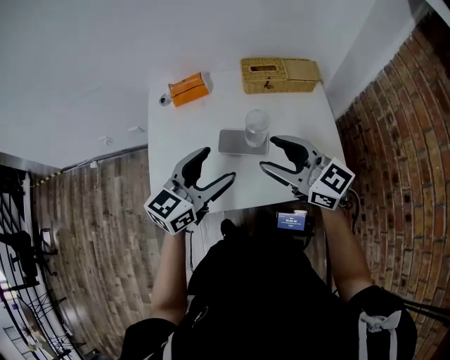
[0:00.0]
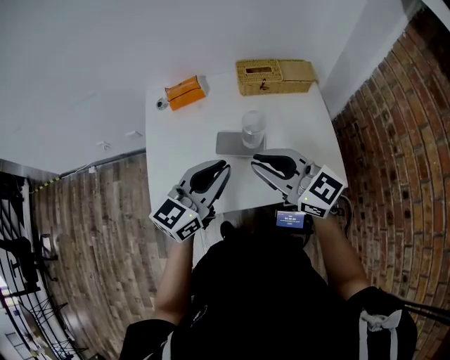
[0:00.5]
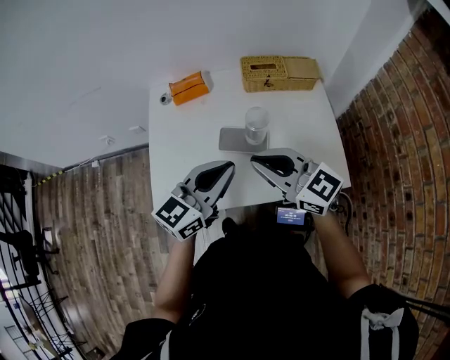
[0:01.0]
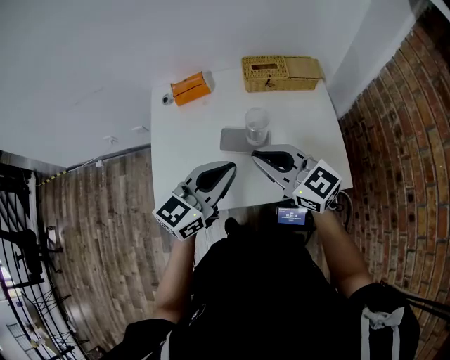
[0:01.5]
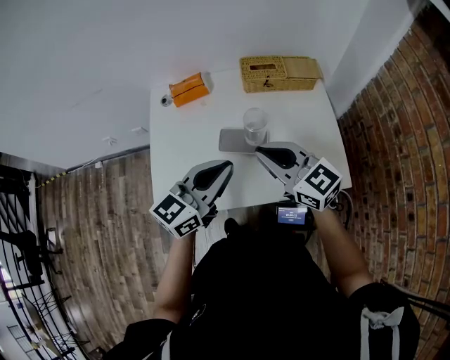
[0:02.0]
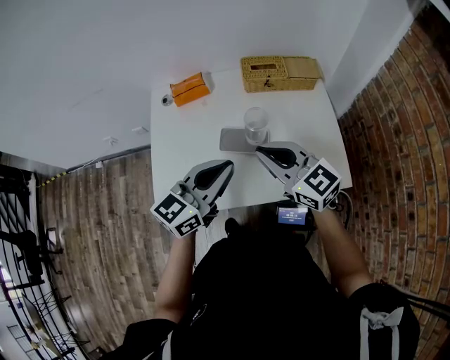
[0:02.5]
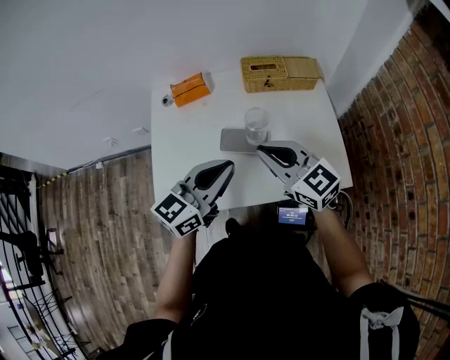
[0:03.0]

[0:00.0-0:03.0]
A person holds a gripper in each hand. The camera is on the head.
0:00.0 to 0:01.5: The left gripper closes; the right gripper closes up.
0:01.5 to 0:03.0: The grippers make only small movements.

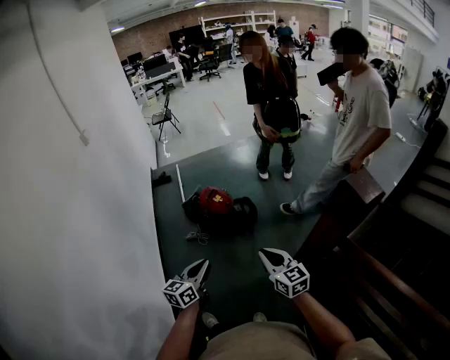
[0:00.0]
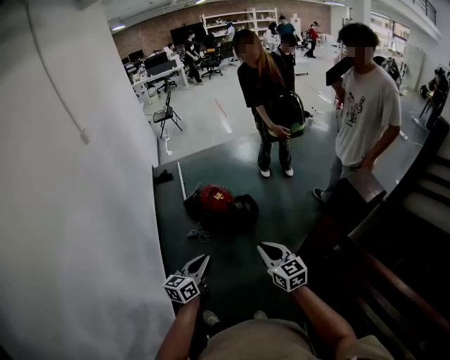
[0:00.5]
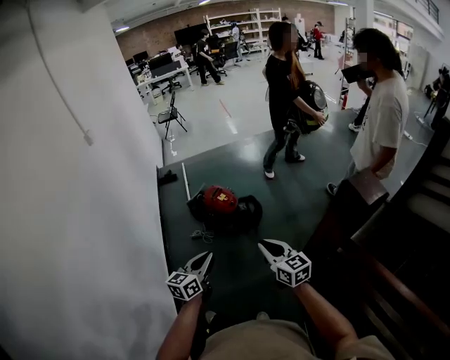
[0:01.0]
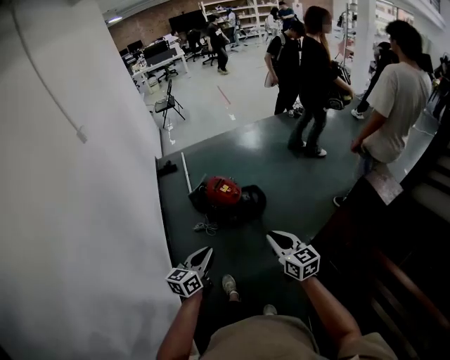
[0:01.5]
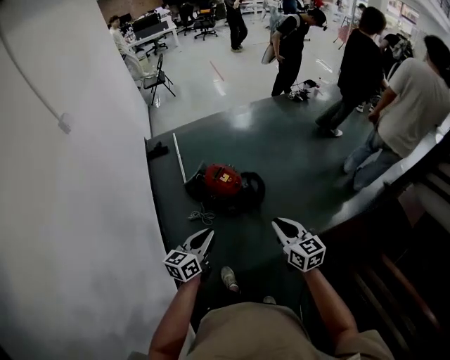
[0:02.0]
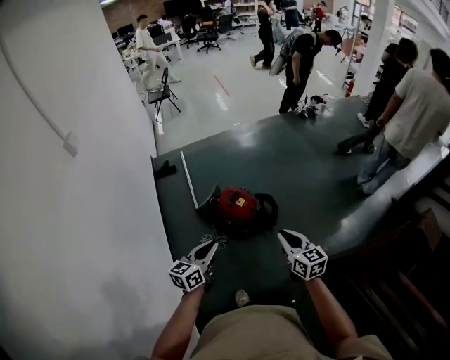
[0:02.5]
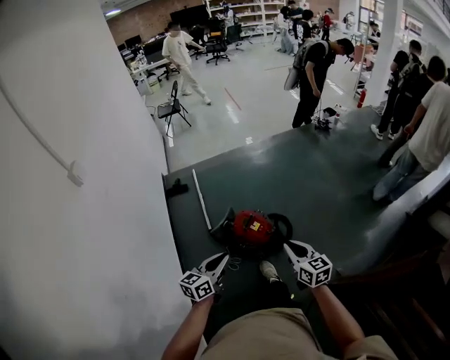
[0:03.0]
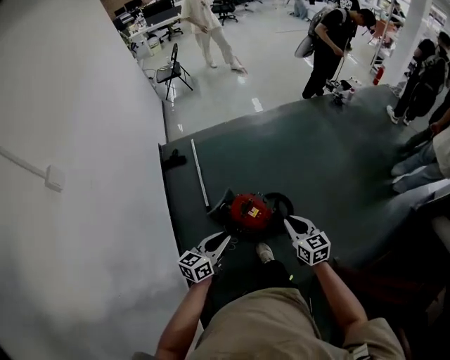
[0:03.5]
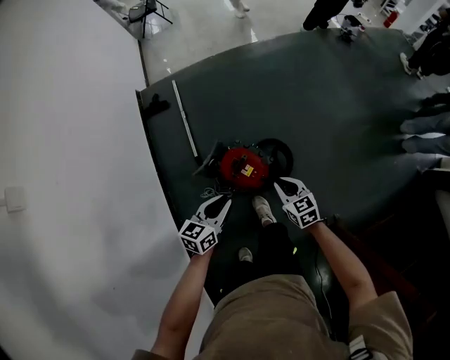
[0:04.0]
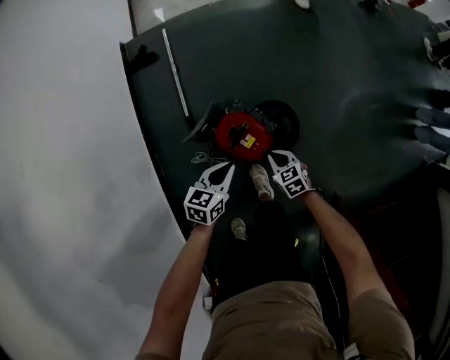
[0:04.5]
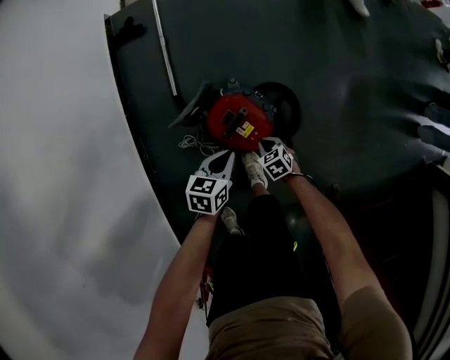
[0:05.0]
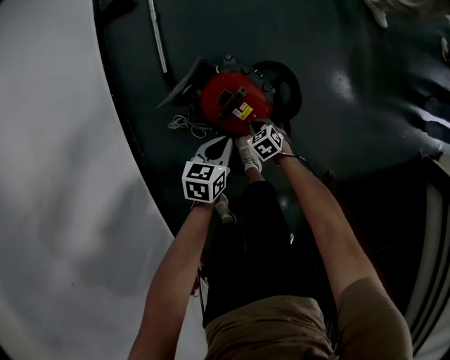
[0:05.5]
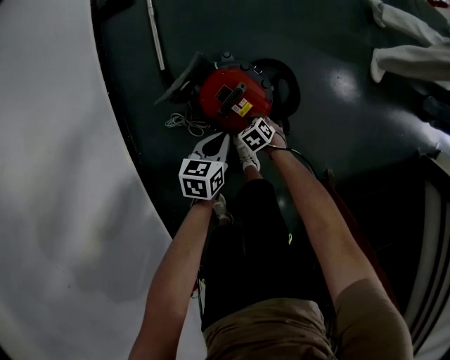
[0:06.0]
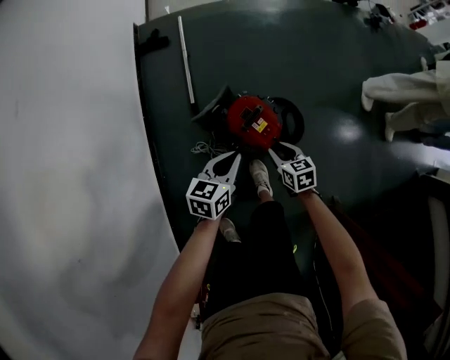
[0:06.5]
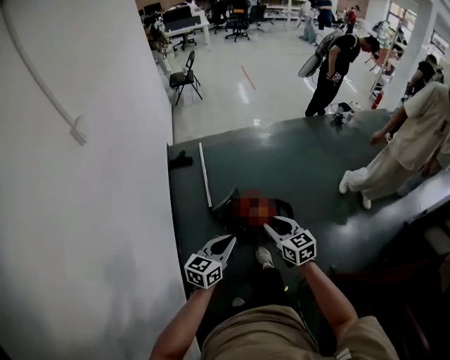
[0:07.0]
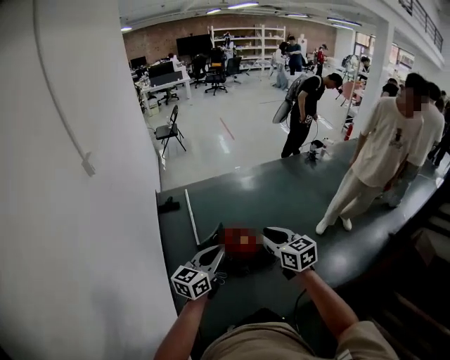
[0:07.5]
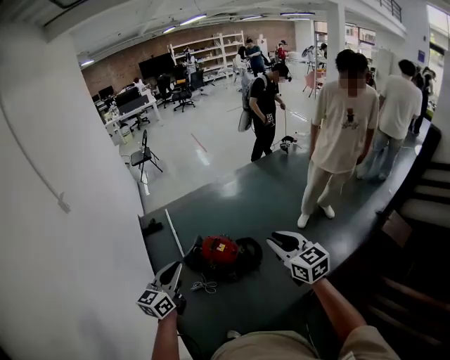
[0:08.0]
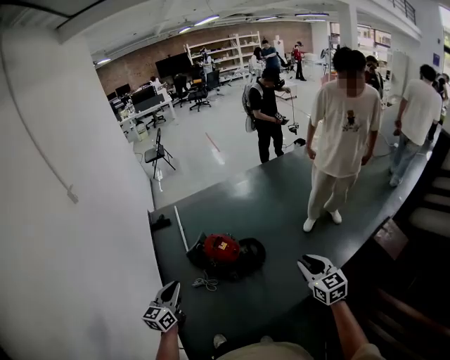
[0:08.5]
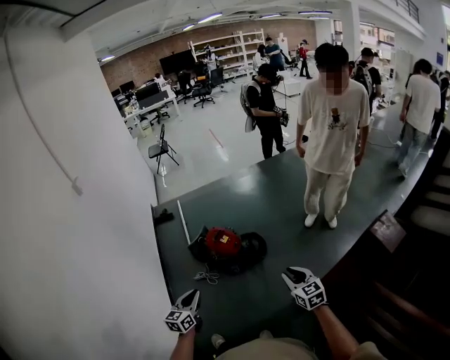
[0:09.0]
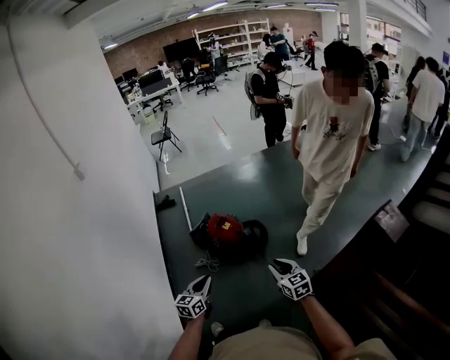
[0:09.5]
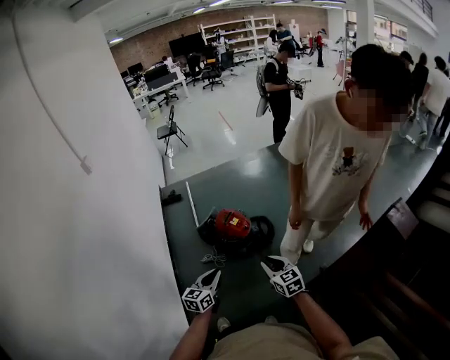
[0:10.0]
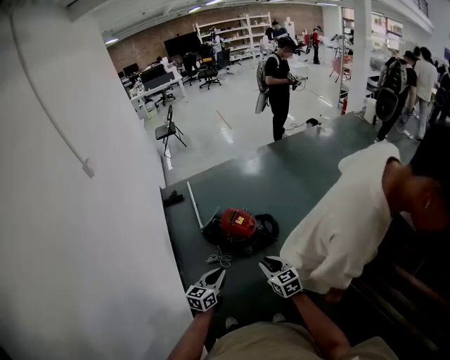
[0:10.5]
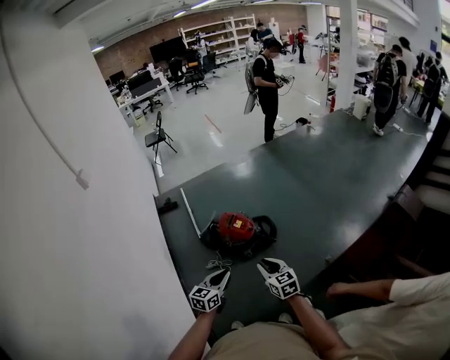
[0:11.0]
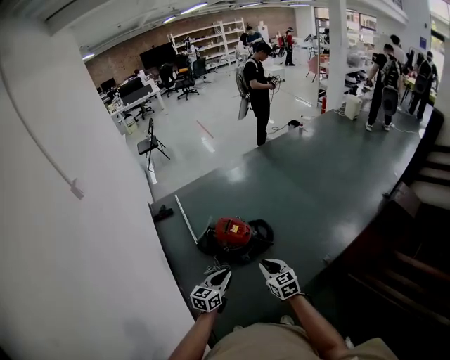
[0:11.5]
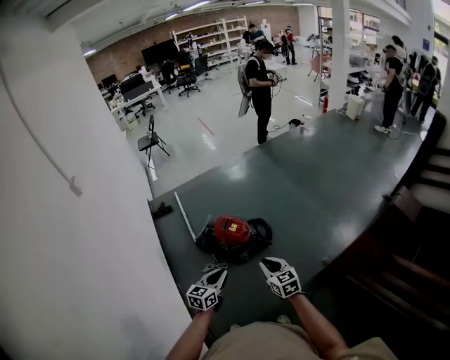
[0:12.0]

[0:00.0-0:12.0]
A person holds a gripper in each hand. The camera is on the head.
0:00.0 to 0:02.0: Both grippers travel together forward, about 20 cm.
0:02.0 to 0:04.0: Both grippers are carried forward, about 50 cm. The right gripper is displaced downward by some 30 cm, and turns by approximately 20 degrees.
0:04.0 to 0:06.0: Both grippers travel together downward, some 40 cm. The right gripper tilts its fingers approximately 40 degrees downward; the left gripper swivels approximately 20 degrees.
0:06.0 to 0:08.0: The two grippers travel together, approximately 40 cm. Both grippers move upward, about 80 cm. The right gripper tilts its fingers about 60 degrees upward; the left gripper points its fingers some 40 degrees further upward.
0:08.0 to 0:10.0: Both grippers move downward and backward, some 25 cm.
0:10.0 to 0:12.0: The right gripper goes roughly 10 cm to the left; the left gripper travels forward and to the left by roughly 10 cm.

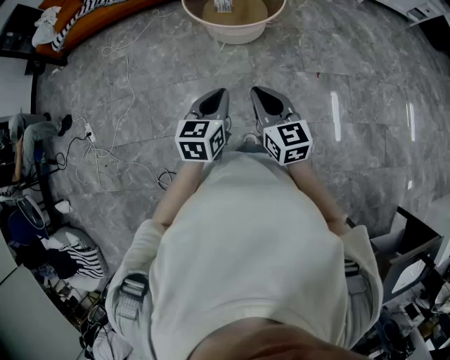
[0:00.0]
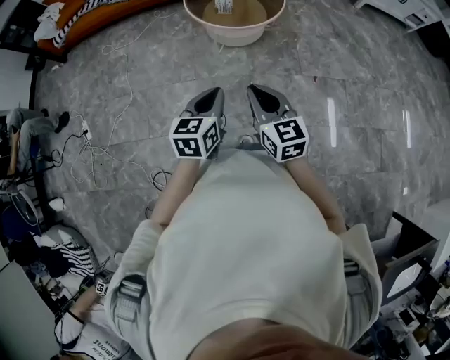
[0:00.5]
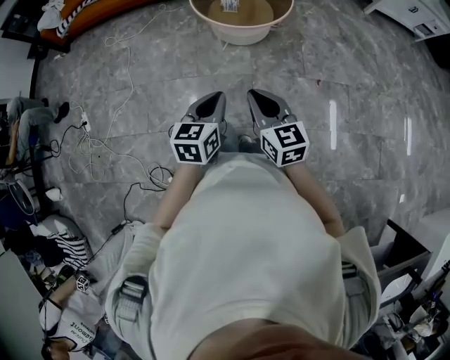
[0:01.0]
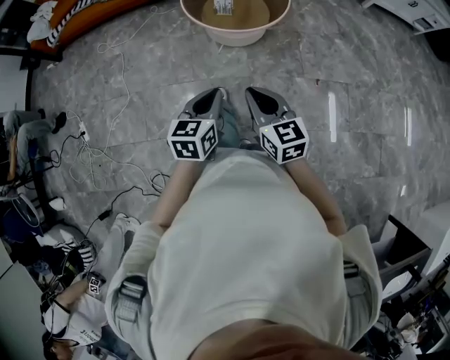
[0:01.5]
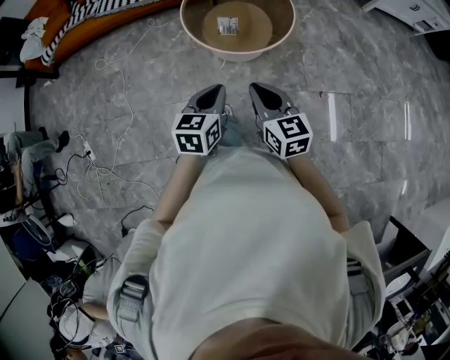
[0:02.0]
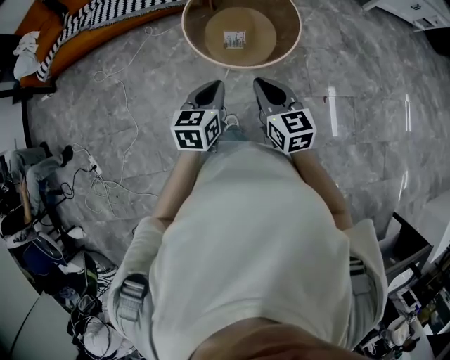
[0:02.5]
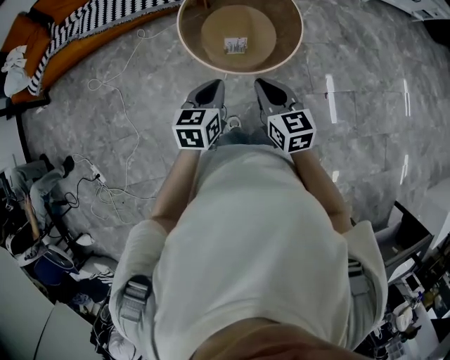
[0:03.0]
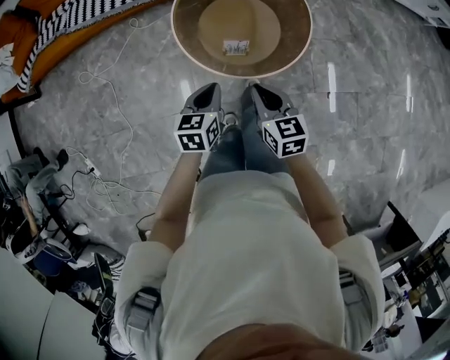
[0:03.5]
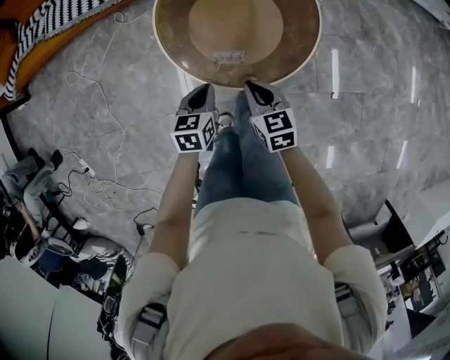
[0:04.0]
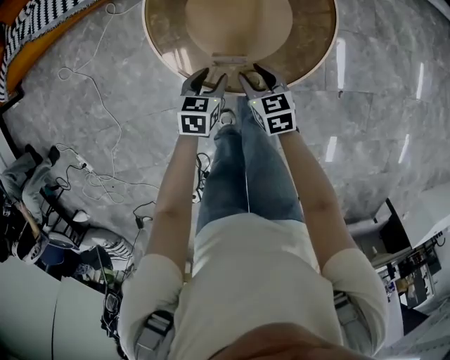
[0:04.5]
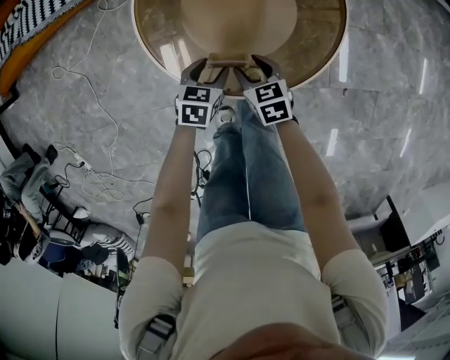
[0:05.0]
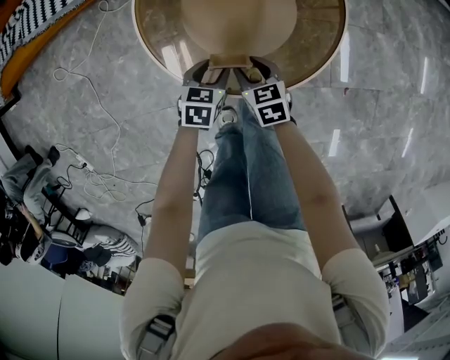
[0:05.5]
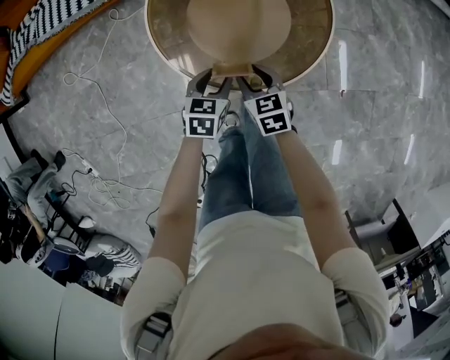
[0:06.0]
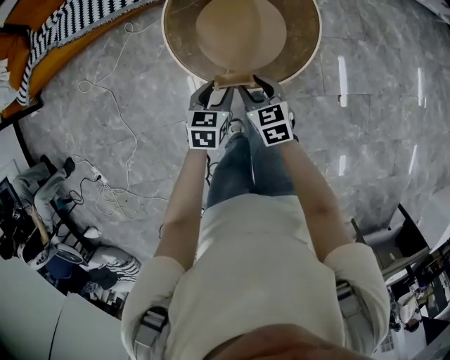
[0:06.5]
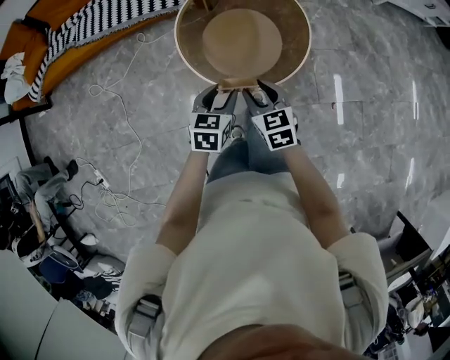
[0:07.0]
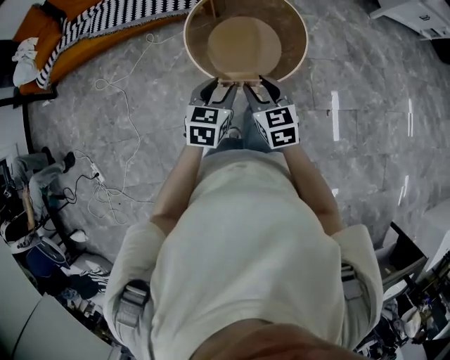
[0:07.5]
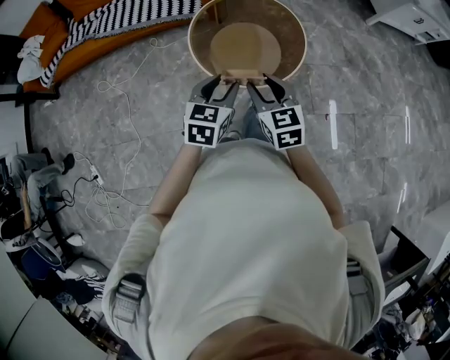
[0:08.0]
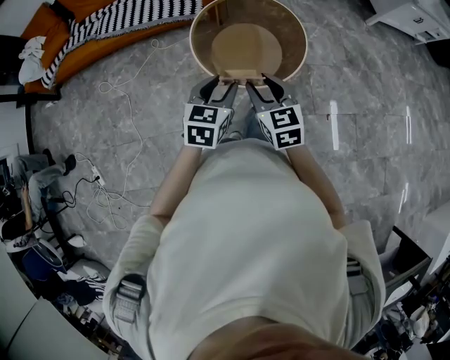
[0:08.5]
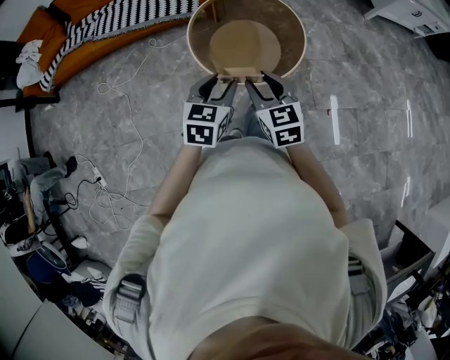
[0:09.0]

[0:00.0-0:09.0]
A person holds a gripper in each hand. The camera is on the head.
0:00.0 to 0:02.0: Both grippers travel together forward, some 20 cm.
0:02.0 to 0:04.5: Both grippers travel together downward and forward, roughly 50 cm. The right gripper rotates roughly 30 degrees, and opens; the left gripper turns by some 20 degrees, and opens up.
0:04.5 to 0:07.0: The right gripper travels upward and backward by roughly 25 cm, while the left gripper shifts approximately 20 cm upward.
0:07.0 to 0:09.0: The two grippers go some 15 cm upward and backward.

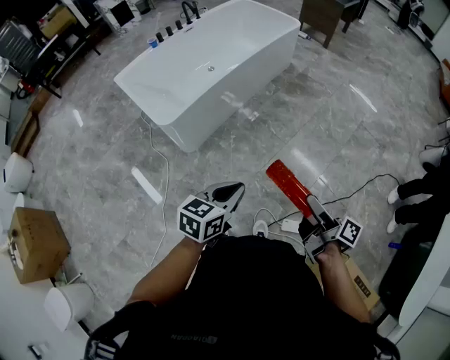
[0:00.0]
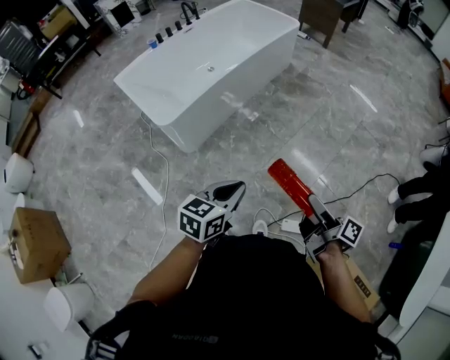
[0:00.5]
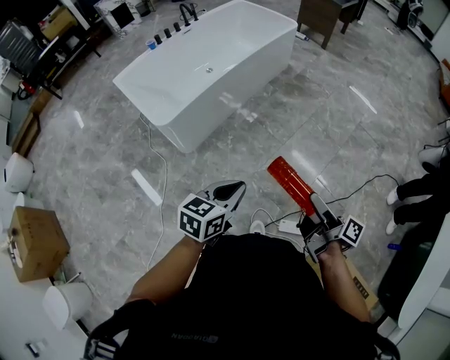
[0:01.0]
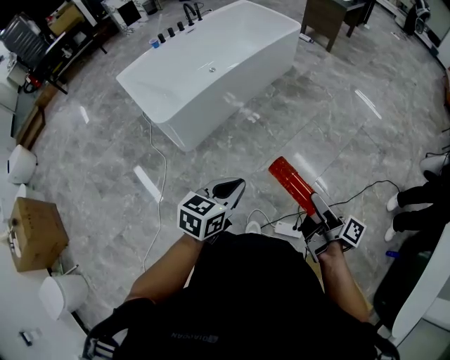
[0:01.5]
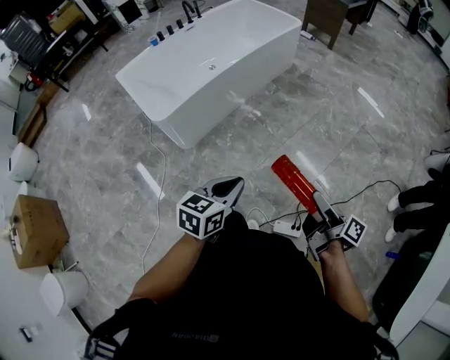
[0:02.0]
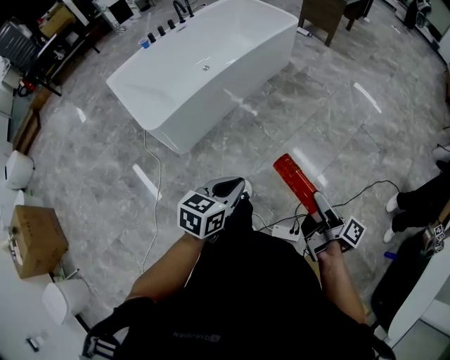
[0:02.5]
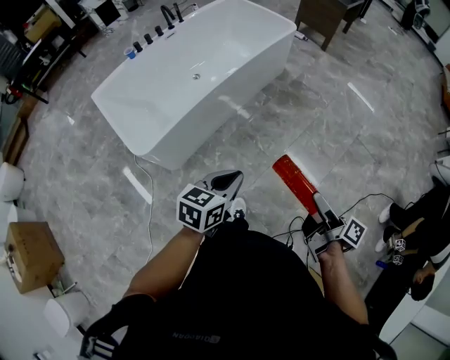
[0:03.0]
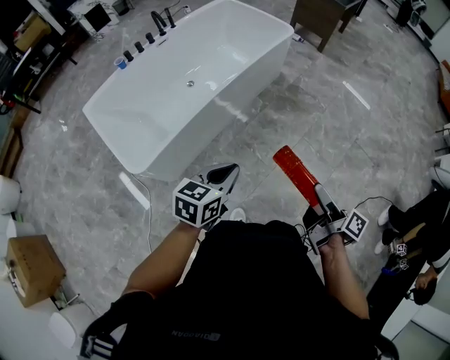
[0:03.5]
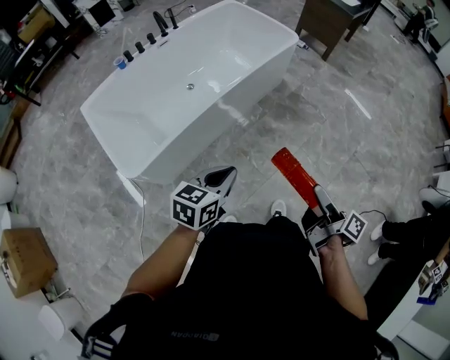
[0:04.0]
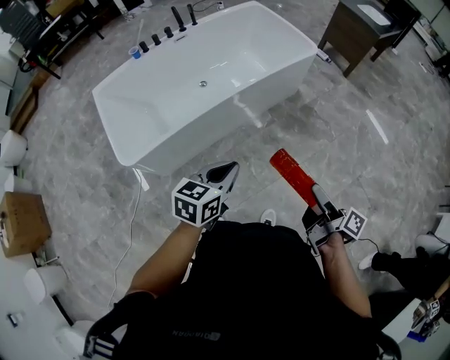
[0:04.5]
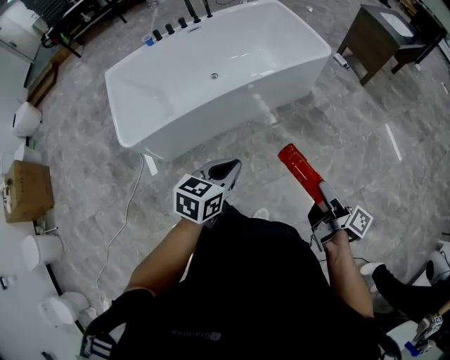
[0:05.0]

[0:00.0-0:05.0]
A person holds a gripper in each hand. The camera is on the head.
0:00.0 to 0:02.5: The left gripper goes roughly 10 cm forward and to the right. The right gripper moves to the right and forward, roughly 10 cm.
0:02.5 to 0:05.0: The pair of grippers is taken forward, about 50 cm. The right gripper changes its angle by roughly 20 degrees; the left gripper turns by about 20 degrees.
